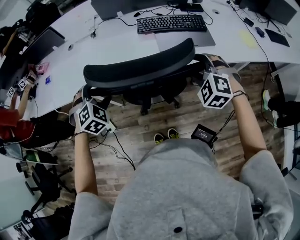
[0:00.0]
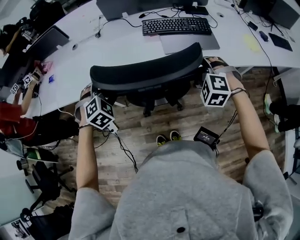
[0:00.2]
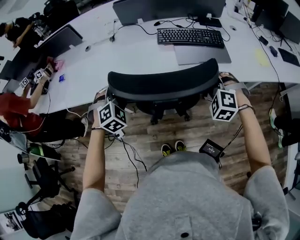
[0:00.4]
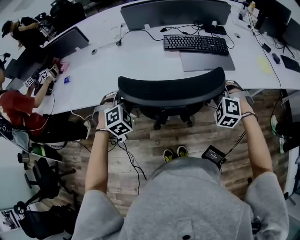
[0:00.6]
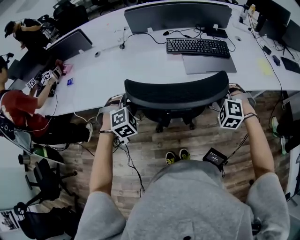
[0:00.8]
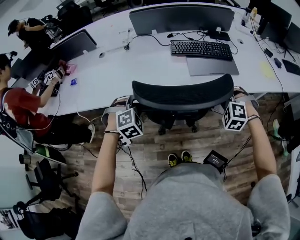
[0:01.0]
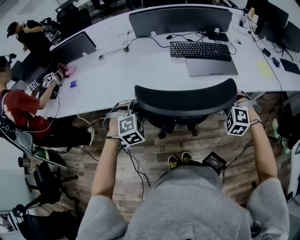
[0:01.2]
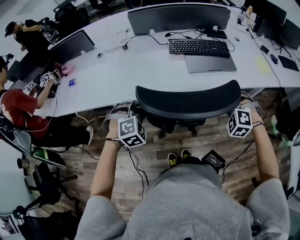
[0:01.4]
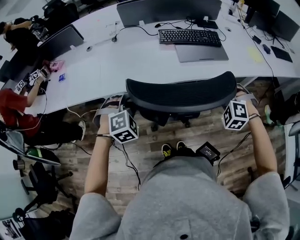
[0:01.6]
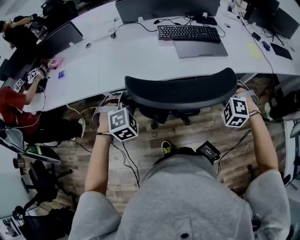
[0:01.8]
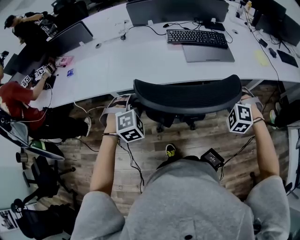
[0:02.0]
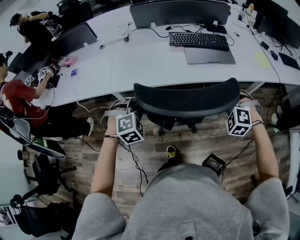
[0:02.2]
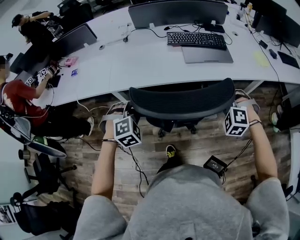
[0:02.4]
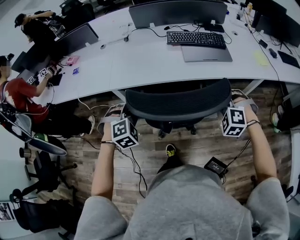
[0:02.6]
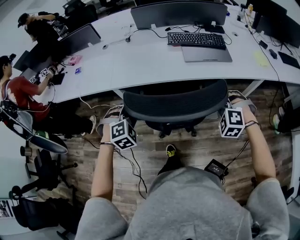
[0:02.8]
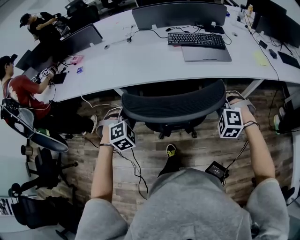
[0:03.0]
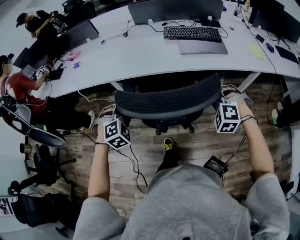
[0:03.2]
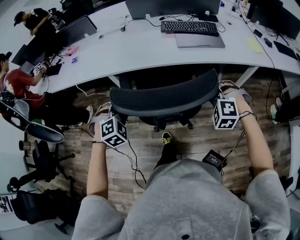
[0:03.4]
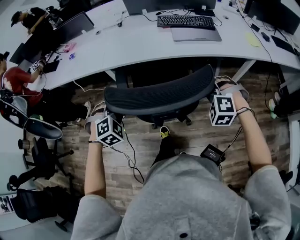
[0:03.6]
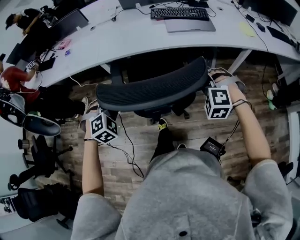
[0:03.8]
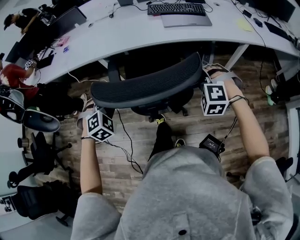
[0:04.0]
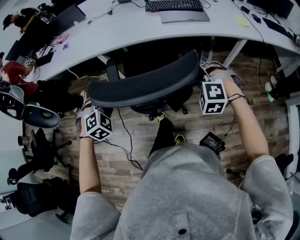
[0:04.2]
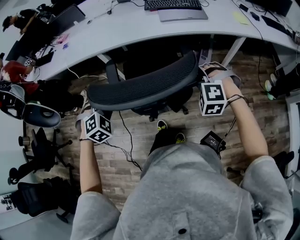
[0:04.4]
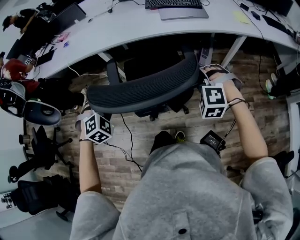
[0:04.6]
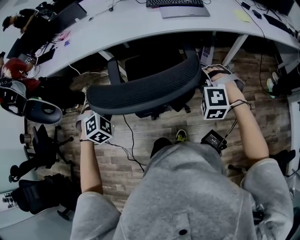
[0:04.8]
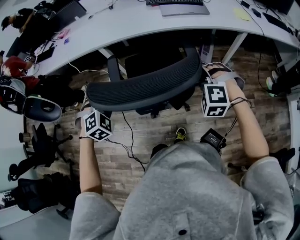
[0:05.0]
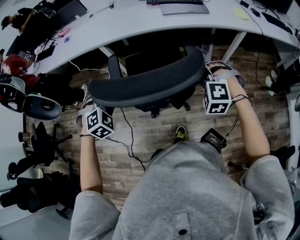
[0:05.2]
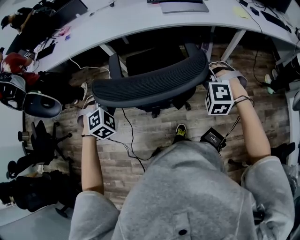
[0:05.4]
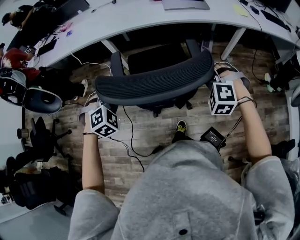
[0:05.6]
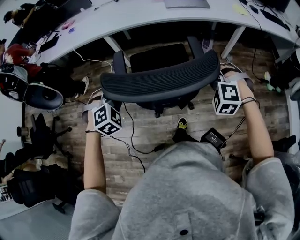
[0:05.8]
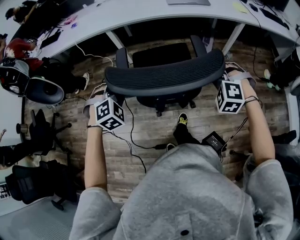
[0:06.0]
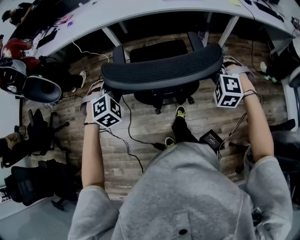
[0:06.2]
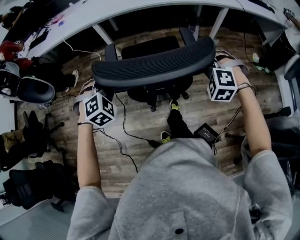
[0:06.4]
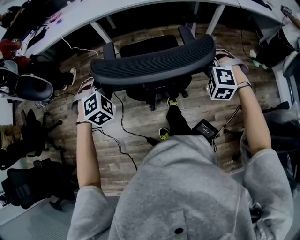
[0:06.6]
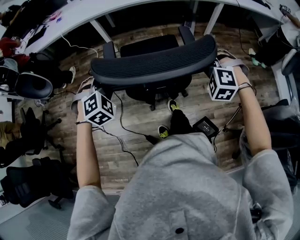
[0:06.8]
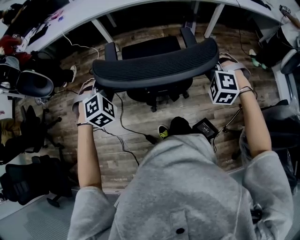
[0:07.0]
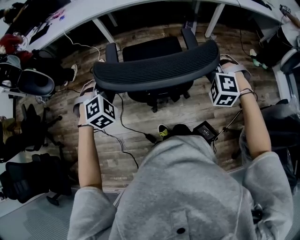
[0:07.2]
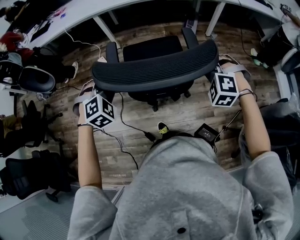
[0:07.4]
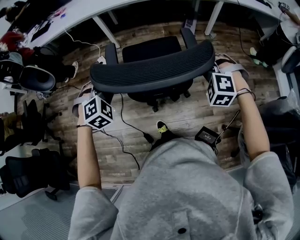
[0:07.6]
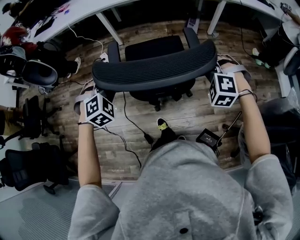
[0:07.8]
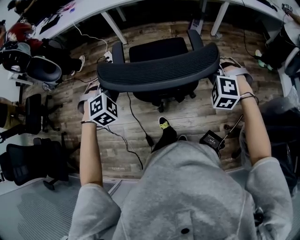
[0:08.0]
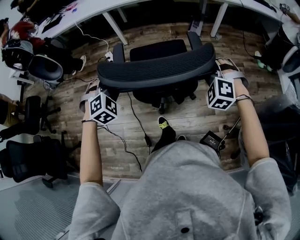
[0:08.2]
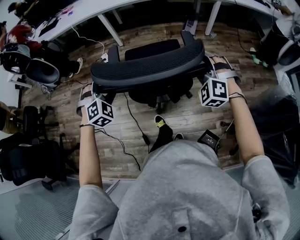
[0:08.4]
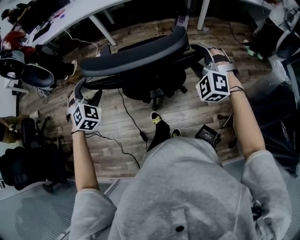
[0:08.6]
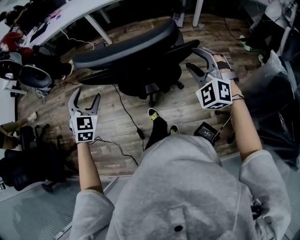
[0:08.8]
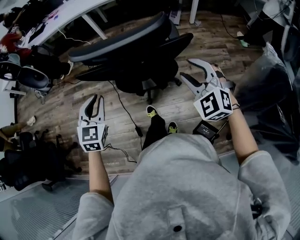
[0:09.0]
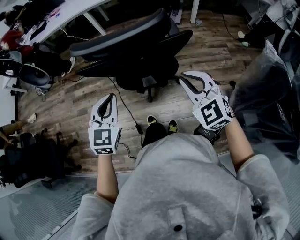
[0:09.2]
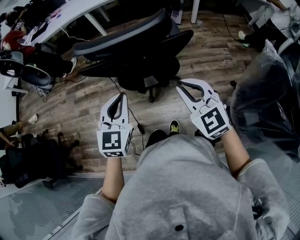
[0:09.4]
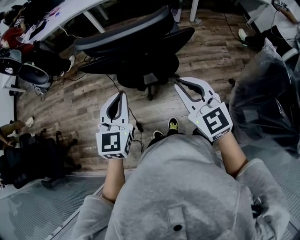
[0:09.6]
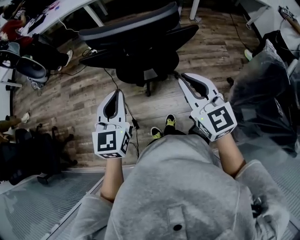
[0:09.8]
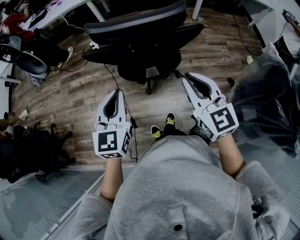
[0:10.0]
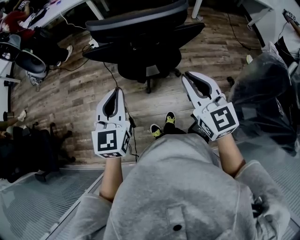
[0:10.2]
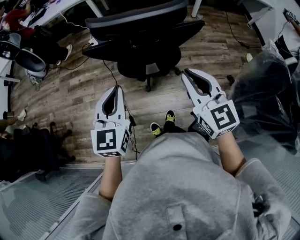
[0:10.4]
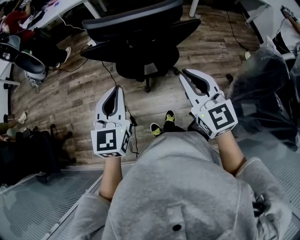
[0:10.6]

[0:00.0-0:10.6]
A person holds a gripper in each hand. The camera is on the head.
0:00.0 to 0:01.6: The two grippers go roughly 5 cm backward. The left gripper closes its fingers, while the right gripper closes up.
0:01.6 to 0:03.0: The grippers both shift backward by about 10 cm.
0:03.0 to 0:04.6: Both grippers move backward, about 20 cm.
0:04.6 to 0:06.0: Both grippers travel together backward, approximately 15 cm.
0:06.0 to 0:07.6: Both grippers move backward, some 20 cm.
0:07.6 to 0:09.0: Both grippers travel together backward, approximately 20 cm. The left gripper rolls counterclockwise, seen from behind, by roughly 40 degrees, and opens and closes again. The right gripper rotates roughly 40 degrees, and opens up.
0:09.0 to 0:10.6: The left gripper travels backward and upward by about 10 cm, and rotates about 20 degrees. The right gripper goes some 15 cm backward and to the left, changes its angle by approximately 40 degrees, and closes up.

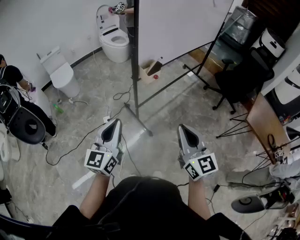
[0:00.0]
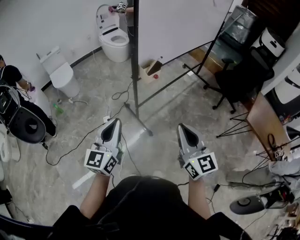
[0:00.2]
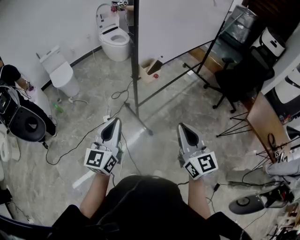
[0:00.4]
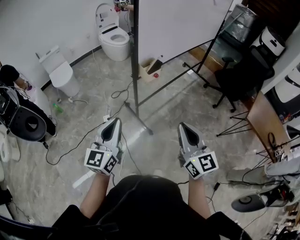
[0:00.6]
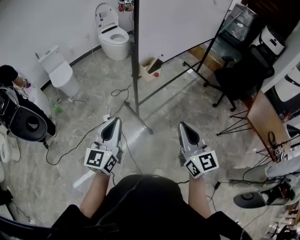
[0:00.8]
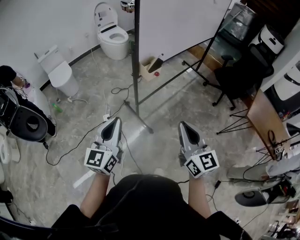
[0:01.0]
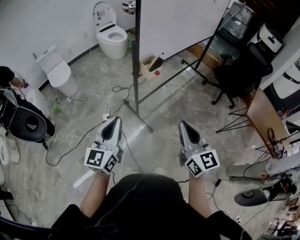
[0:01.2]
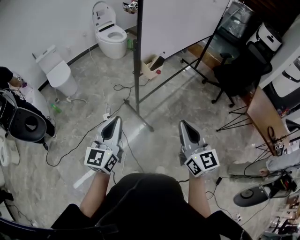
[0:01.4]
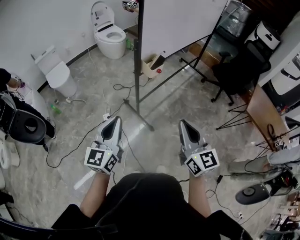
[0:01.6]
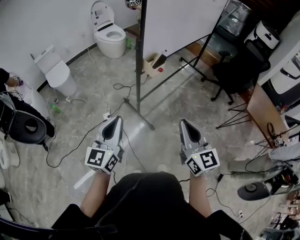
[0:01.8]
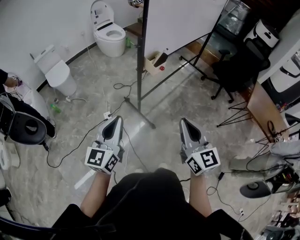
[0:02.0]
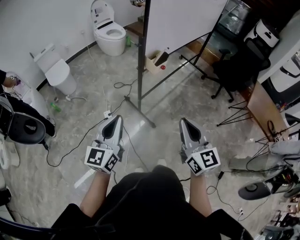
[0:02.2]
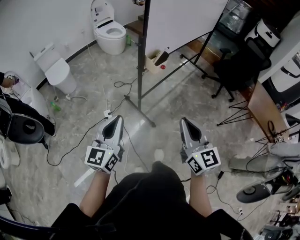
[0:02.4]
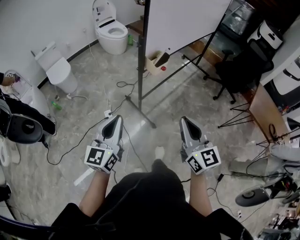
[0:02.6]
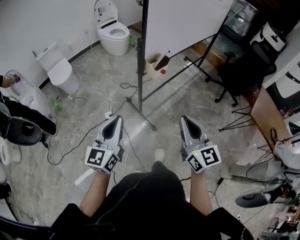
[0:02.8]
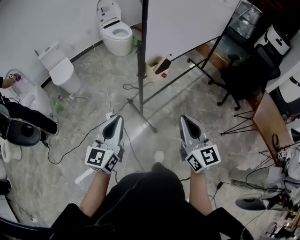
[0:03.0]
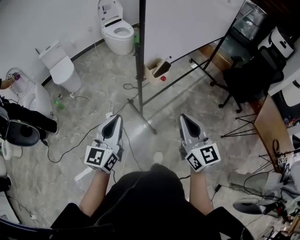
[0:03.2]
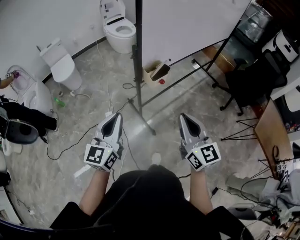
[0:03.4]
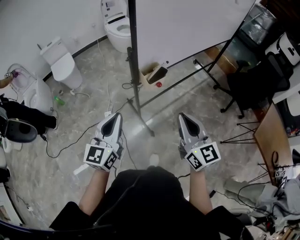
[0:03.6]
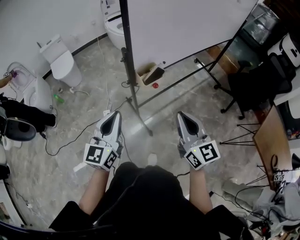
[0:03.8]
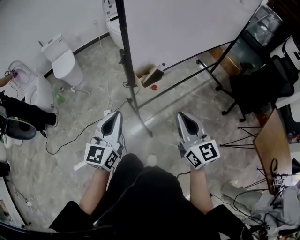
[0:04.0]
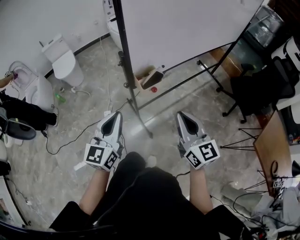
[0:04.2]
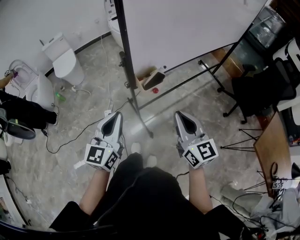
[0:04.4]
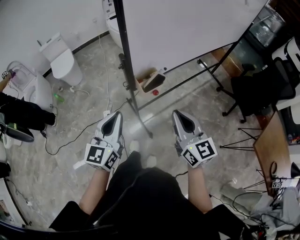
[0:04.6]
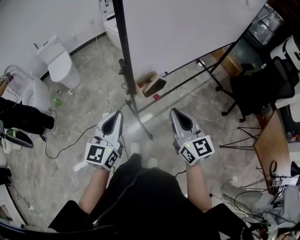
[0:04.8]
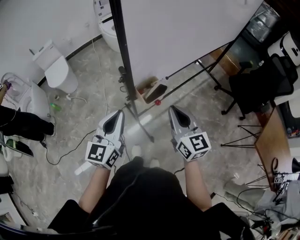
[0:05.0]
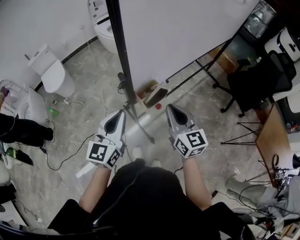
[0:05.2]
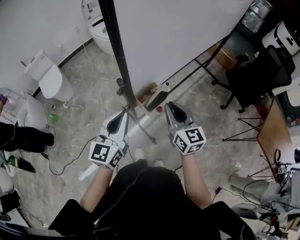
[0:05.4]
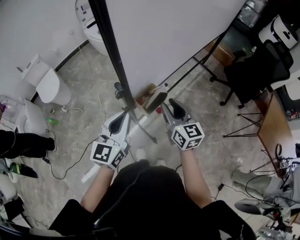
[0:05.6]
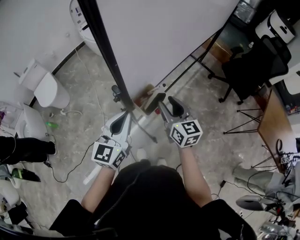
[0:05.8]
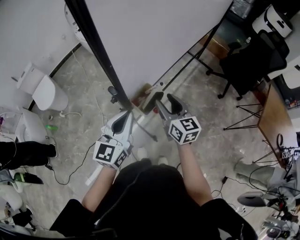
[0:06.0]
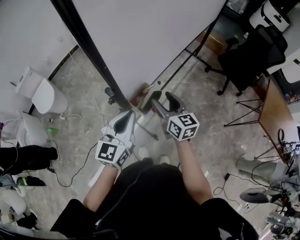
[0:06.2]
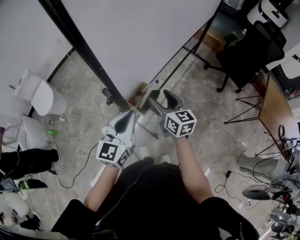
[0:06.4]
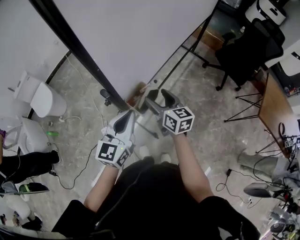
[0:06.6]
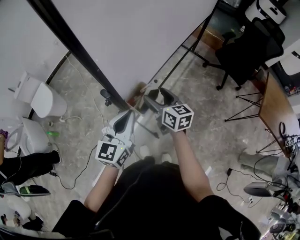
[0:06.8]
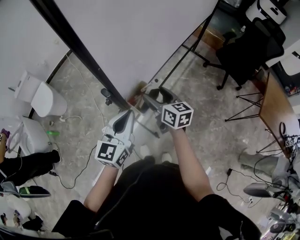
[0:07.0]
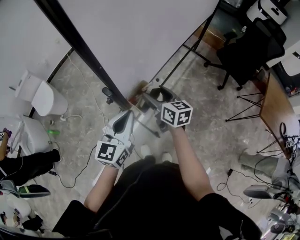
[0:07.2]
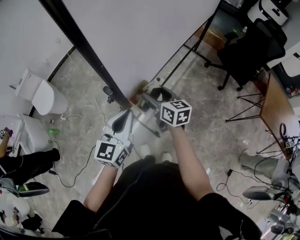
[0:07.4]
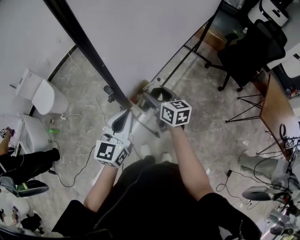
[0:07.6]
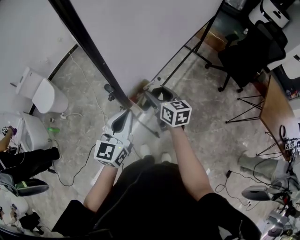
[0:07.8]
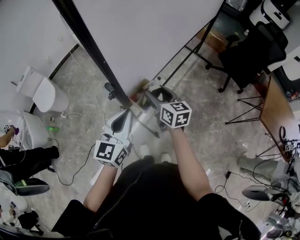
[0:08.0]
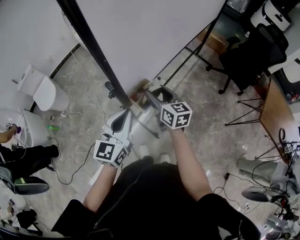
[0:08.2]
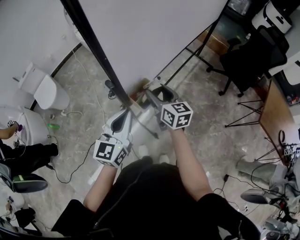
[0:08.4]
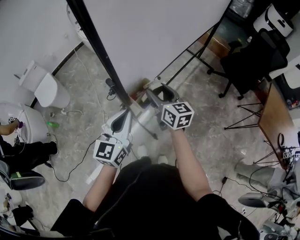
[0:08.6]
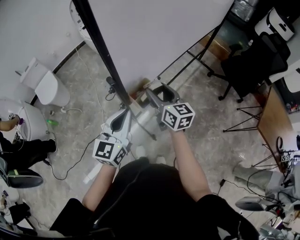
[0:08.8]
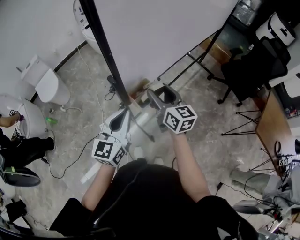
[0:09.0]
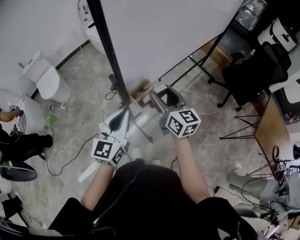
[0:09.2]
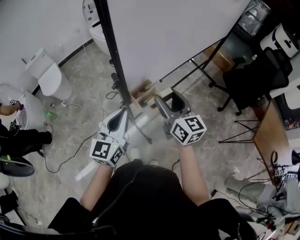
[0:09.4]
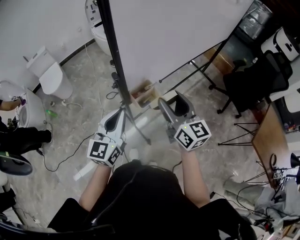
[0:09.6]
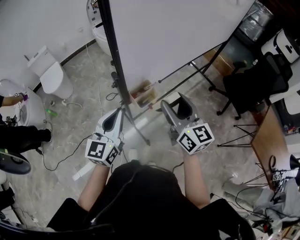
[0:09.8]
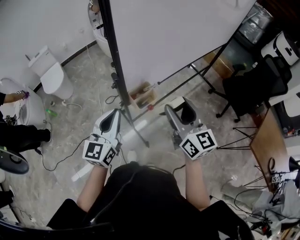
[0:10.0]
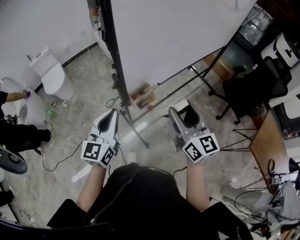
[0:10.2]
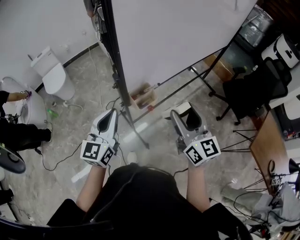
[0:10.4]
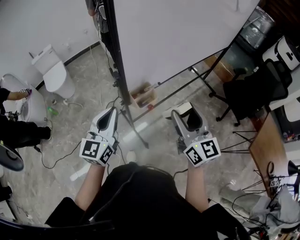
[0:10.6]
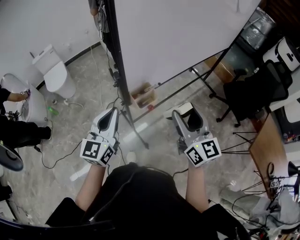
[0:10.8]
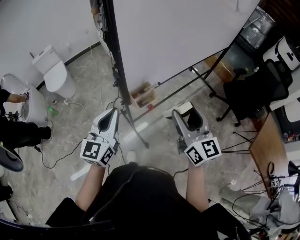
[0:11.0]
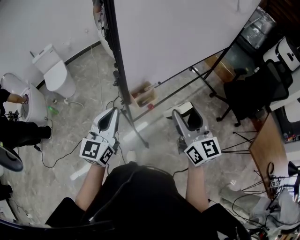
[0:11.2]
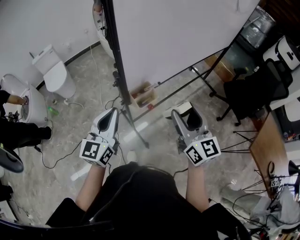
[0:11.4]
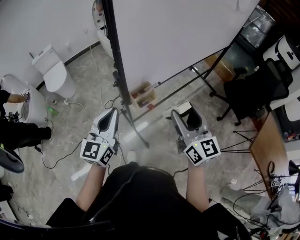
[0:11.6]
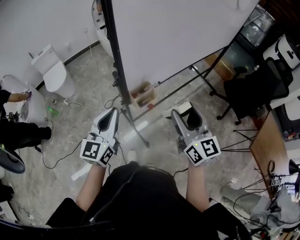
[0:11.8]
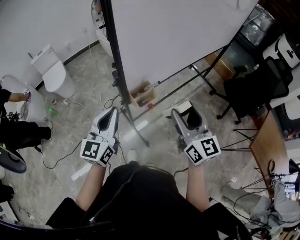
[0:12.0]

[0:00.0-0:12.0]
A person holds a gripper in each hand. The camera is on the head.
0:00.0 to 0:01.6: The grippers stay close to where they were, moving slightly.
0:01.6 to 0:03.0: Both grippers move forward, about 5 cm.
0:03.0 to 0:04.4: Both grippers travel together forward and to the right, about 20 cm.
0:04.4 to 0:06.0: The right gripper travels forward and downward by roughly 20 cm, swivels about 20 degrees, and opens its fingers, while the left gripper is displaced forward by approximately 15 cm, and rotates roughly 20 degrees.
0:06.0 to 0:07.6: The right gripper moves about 5 cm.
0:07.6 to 0:09.0: The right gripper shifts some 5 cm upward.
0:09.0 to 0:10.4: The right gripper travels backward, upward and to the right by approximately 15 cm; the left gripper changes place by roughly 5 cm.
0:10.4 to 0:12.0: The two grippers keep their place.

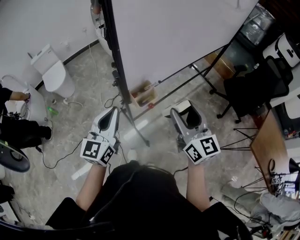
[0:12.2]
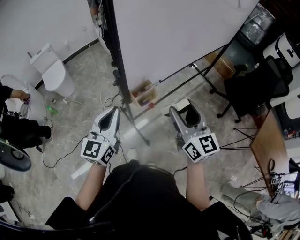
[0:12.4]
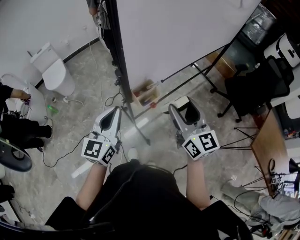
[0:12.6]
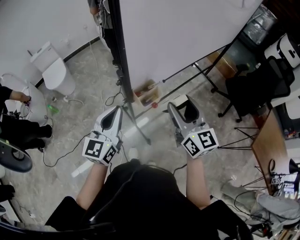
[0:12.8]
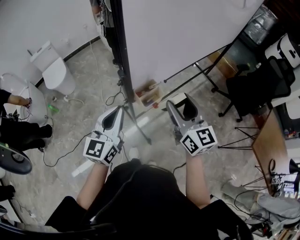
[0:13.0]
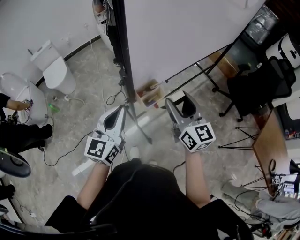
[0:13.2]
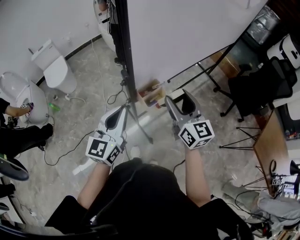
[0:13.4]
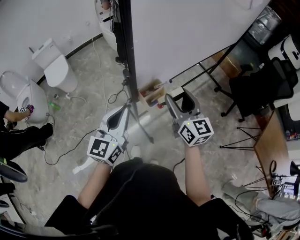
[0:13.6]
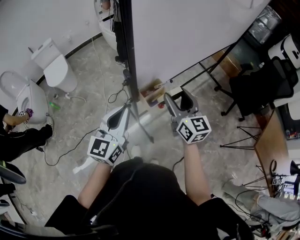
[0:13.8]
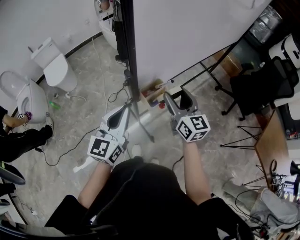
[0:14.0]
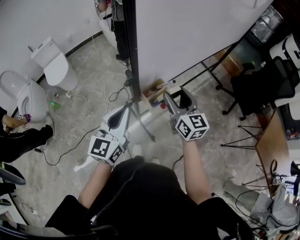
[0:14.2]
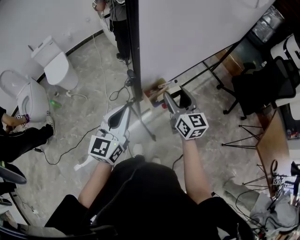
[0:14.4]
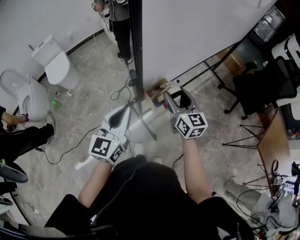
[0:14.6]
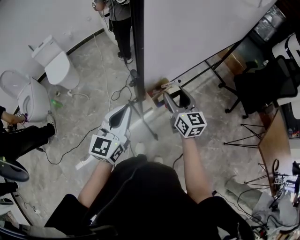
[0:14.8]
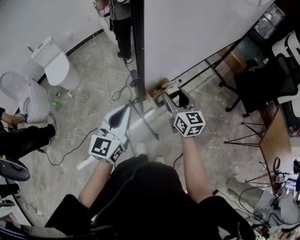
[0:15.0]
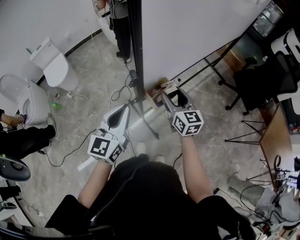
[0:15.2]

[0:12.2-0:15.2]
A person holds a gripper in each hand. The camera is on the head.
0:12.2 to 0:13.8: The right gripper heads forward, to the left and downward, covering some 10 cm.
0:13.8 to 0:15.2: The right gripper heads downward, covering some 10 cm.
